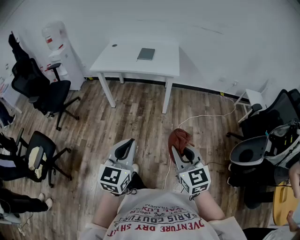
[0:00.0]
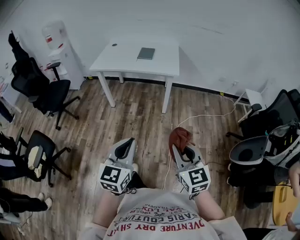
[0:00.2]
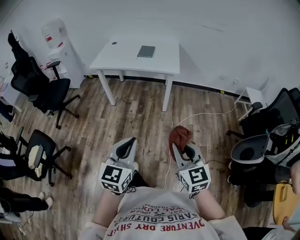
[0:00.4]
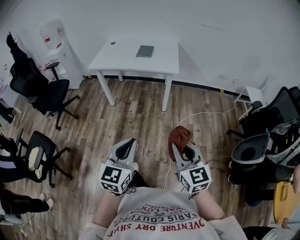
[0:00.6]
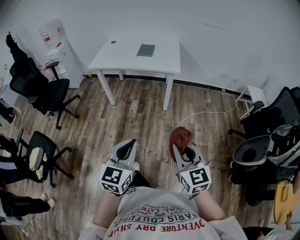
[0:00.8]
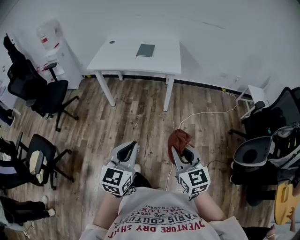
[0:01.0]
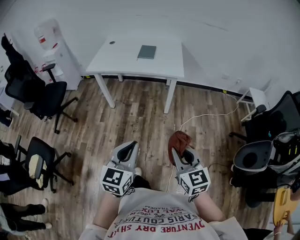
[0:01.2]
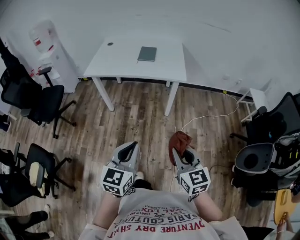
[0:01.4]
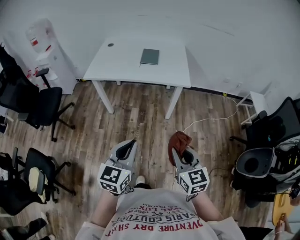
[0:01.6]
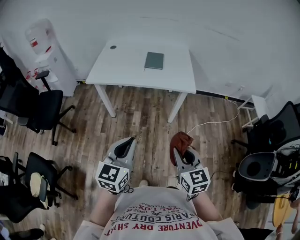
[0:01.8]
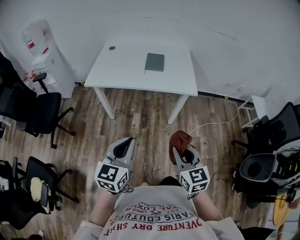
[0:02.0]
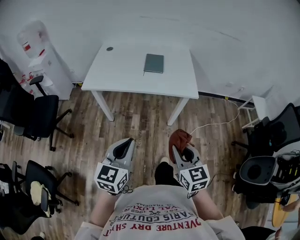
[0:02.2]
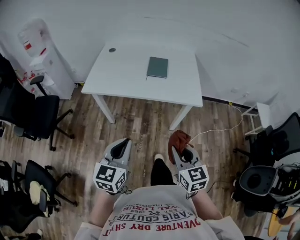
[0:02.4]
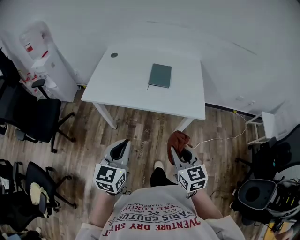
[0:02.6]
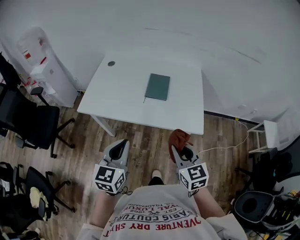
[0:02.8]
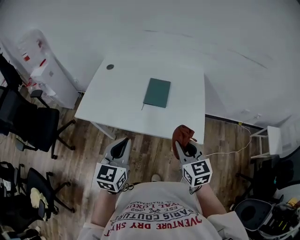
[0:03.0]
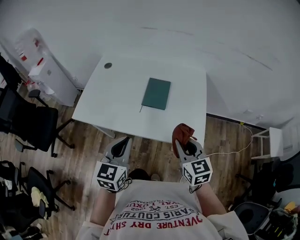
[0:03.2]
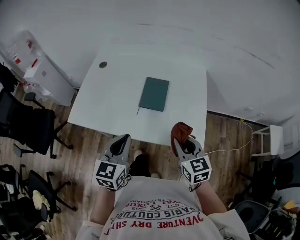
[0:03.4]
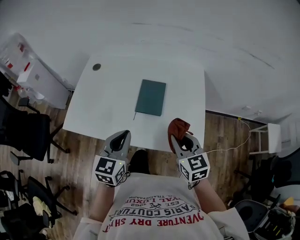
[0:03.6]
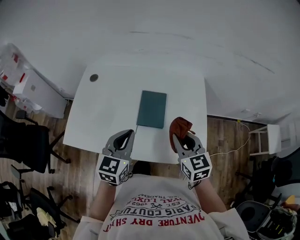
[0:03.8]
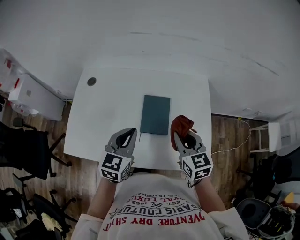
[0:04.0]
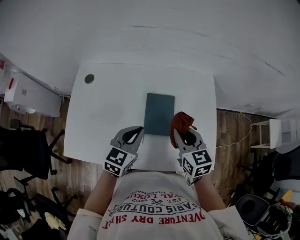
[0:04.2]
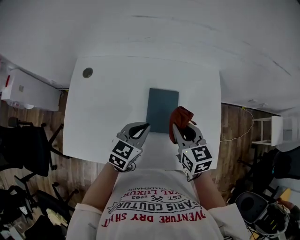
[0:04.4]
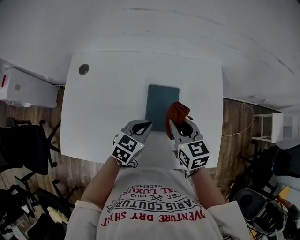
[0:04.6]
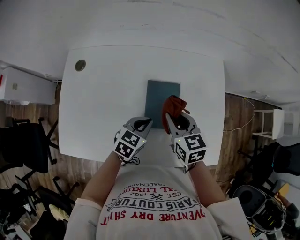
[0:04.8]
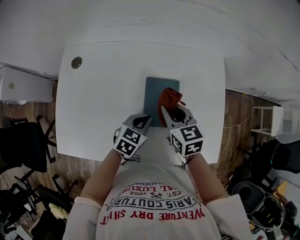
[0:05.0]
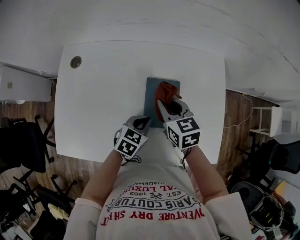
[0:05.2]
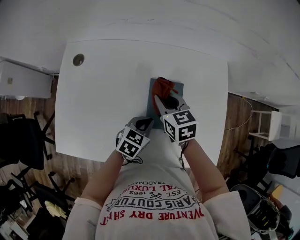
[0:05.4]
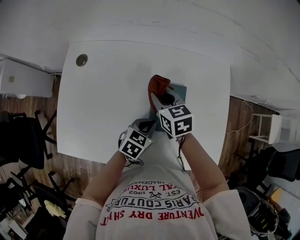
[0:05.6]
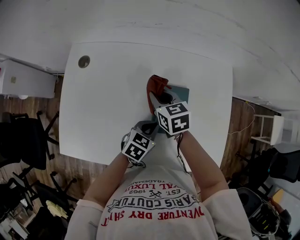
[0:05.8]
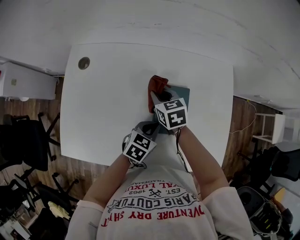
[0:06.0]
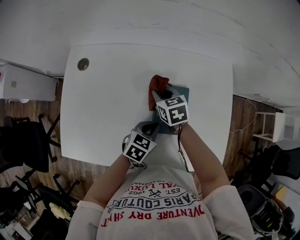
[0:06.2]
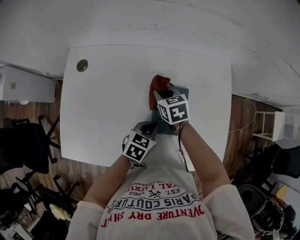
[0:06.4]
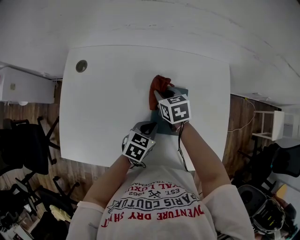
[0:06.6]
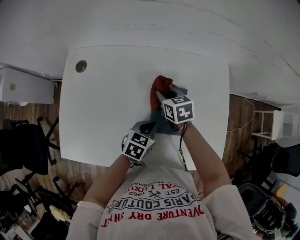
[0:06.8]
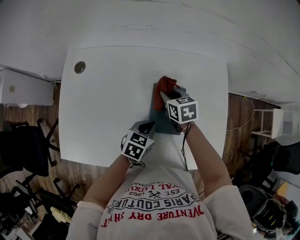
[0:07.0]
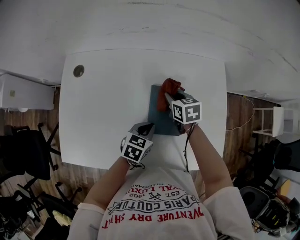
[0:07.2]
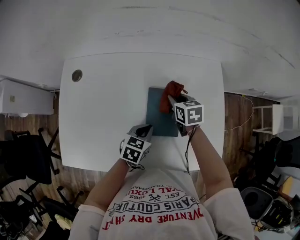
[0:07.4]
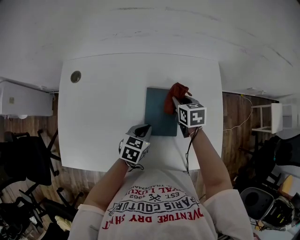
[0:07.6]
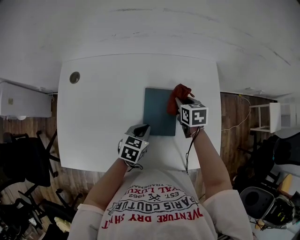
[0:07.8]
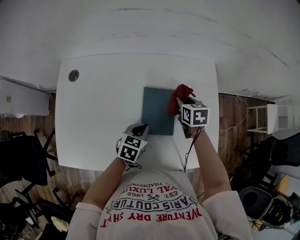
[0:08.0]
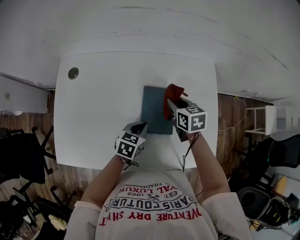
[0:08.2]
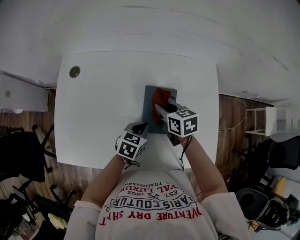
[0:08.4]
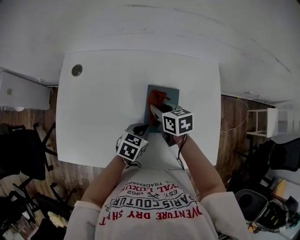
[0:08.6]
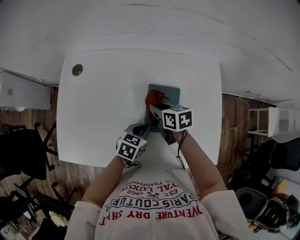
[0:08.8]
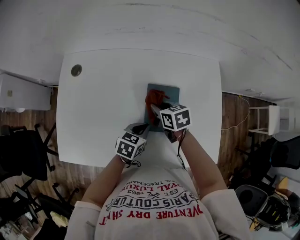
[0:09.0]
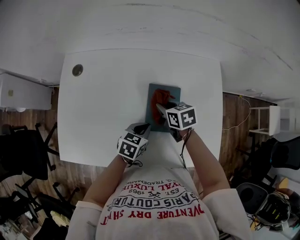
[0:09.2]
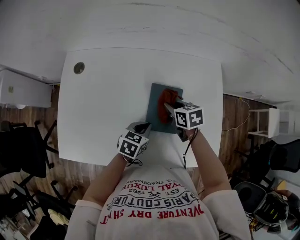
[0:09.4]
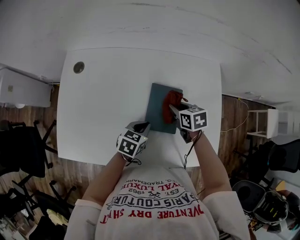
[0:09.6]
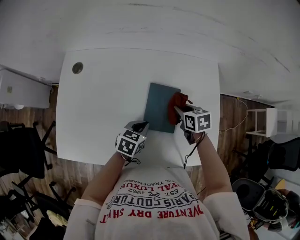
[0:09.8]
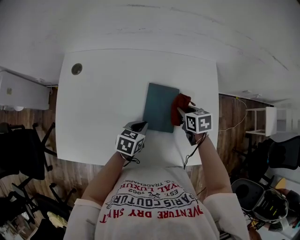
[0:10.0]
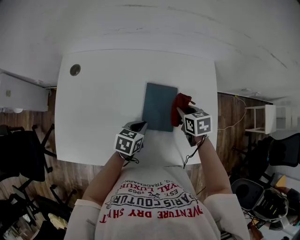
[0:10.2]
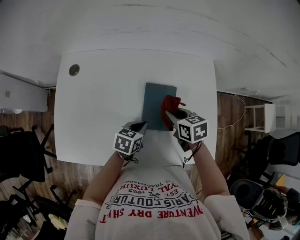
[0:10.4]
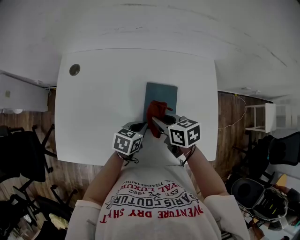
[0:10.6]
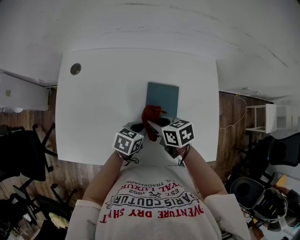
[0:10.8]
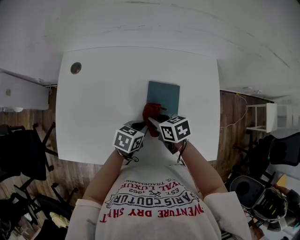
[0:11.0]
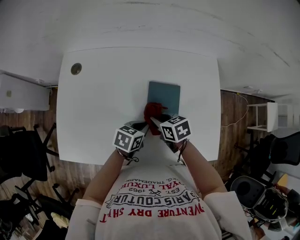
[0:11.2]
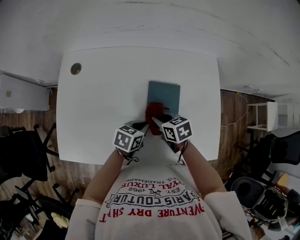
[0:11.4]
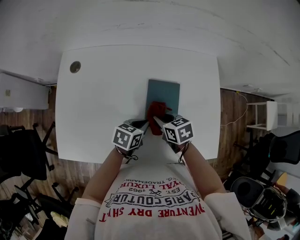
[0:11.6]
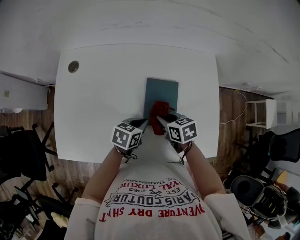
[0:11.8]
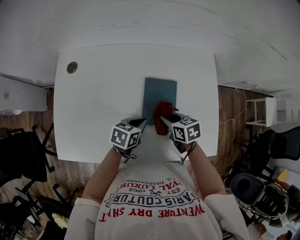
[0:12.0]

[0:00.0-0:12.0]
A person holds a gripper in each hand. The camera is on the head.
0:00.0 to 0:01.6: Both grippers travel together forward and to the left, roughly 25 cm.
0:01.6 to 0:03.0: The two grippers travel together, forward, roughly 40 cm.
0:03.0 to 0:04.4: The left gripper goes some 35 cm forward and downward, and rotates some 30 degrees; the right gripper travels forward by roughly 30 cm.
0:04.4 to 0:06.0: The right gripper travels to the left, downward and forward by some 20 cm, while the left gripper goes some 10 cm downward.
0:06.0 to 0:07.6: The right gripper heads to the right, covering approximately 15 cm.
0:07.6 to 0:09.0: The right gripper moves to the left and backward, some 10 cm.
0:09.0 to 0:10.4: The right gripper moves to the right, approximately 10 cm.
0:10.4 to 0:12.0: The right gripper goes about 5 cm downward, and travels to the left and back again, about 10 cm each way.

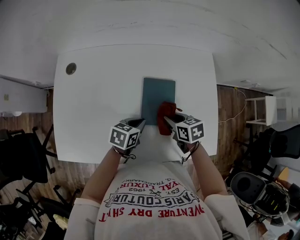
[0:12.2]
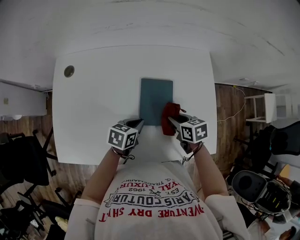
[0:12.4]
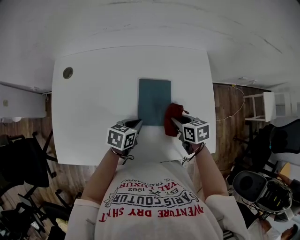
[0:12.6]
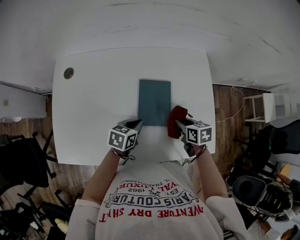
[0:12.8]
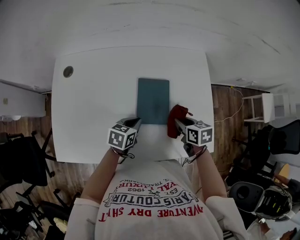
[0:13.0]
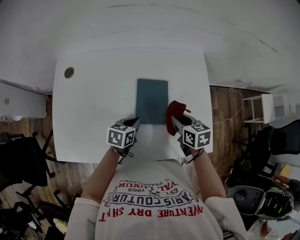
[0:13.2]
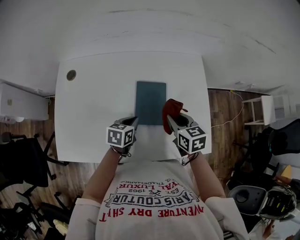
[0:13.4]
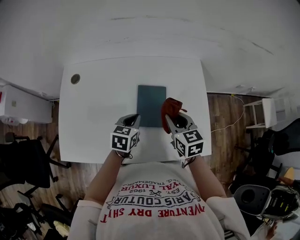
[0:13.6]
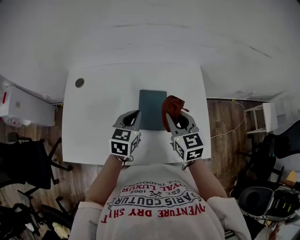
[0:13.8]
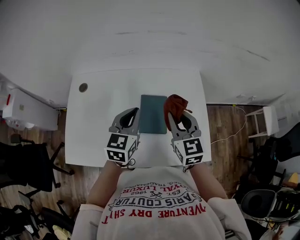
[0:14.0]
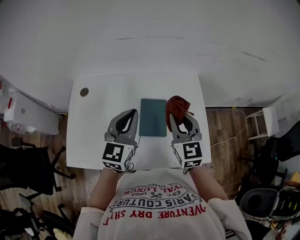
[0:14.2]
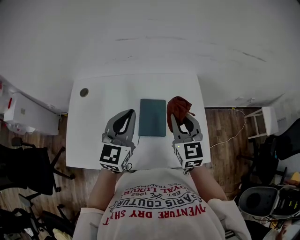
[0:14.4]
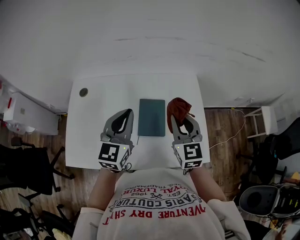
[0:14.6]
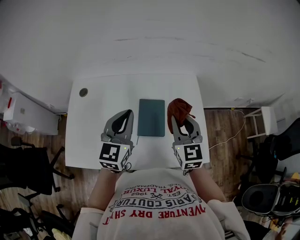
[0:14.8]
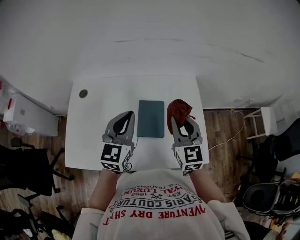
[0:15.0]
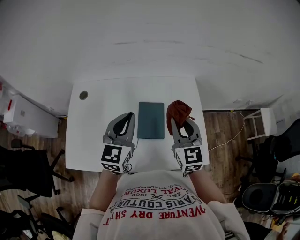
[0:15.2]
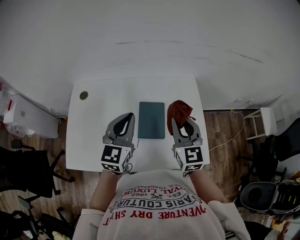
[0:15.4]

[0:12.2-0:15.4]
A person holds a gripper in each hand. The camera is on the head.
0:12.2 to 0:13.8: The grippers both shift upward by some 15 cm. The right gripper changes its angle by roughly 40 degrees. The left gripper rotates some 30 degrees.
0:13.8 to 0:15.4: The right gripper travels upward by approximately 10 cm. The left gripper travels upward by approximately 15 cm, and turns by roughly 20 degrees.

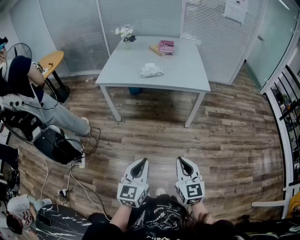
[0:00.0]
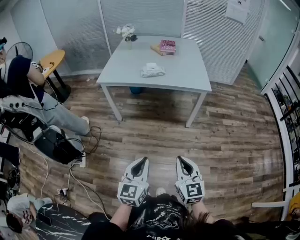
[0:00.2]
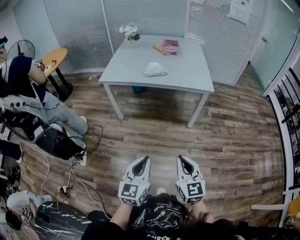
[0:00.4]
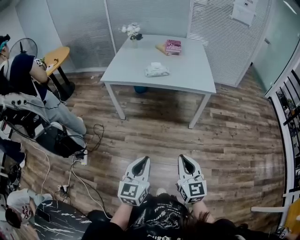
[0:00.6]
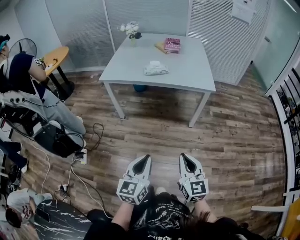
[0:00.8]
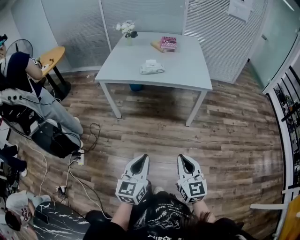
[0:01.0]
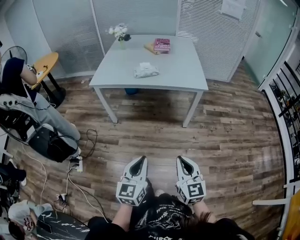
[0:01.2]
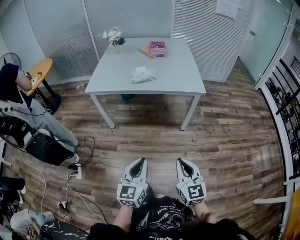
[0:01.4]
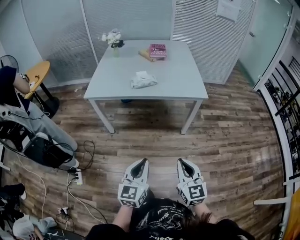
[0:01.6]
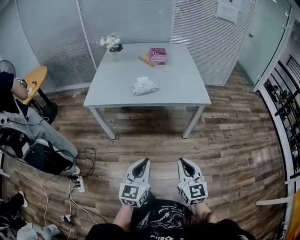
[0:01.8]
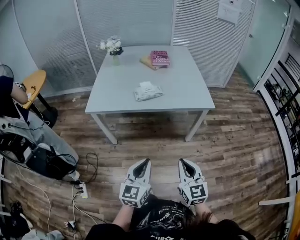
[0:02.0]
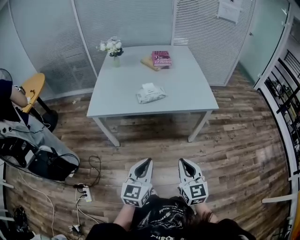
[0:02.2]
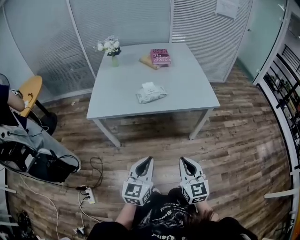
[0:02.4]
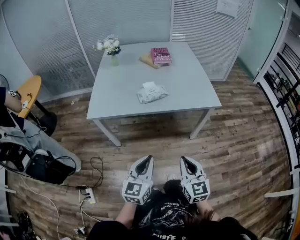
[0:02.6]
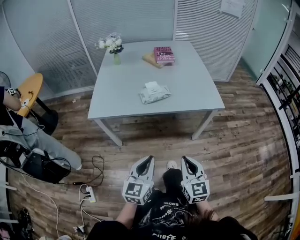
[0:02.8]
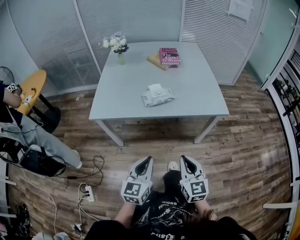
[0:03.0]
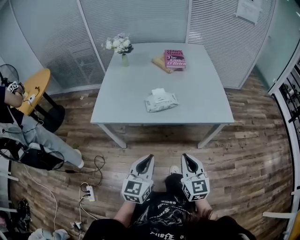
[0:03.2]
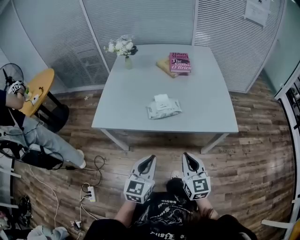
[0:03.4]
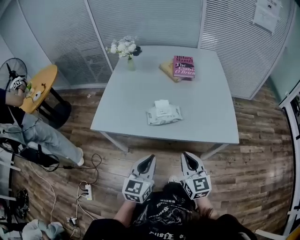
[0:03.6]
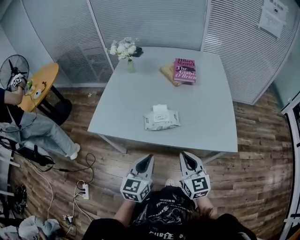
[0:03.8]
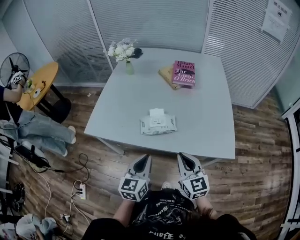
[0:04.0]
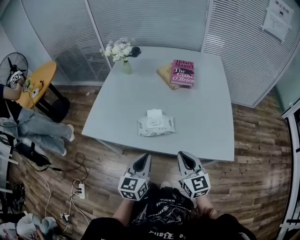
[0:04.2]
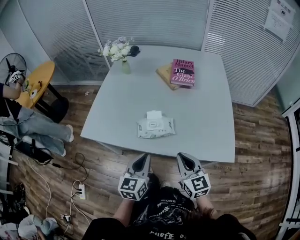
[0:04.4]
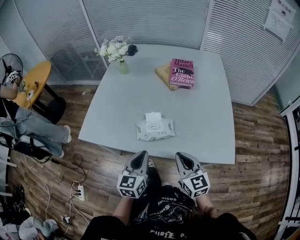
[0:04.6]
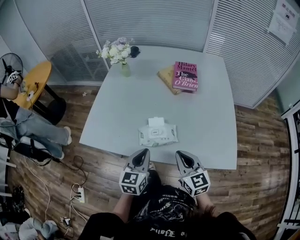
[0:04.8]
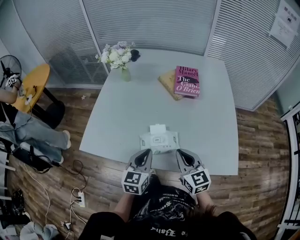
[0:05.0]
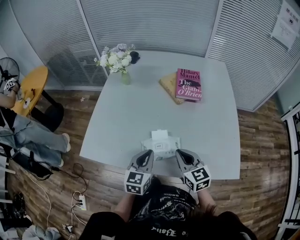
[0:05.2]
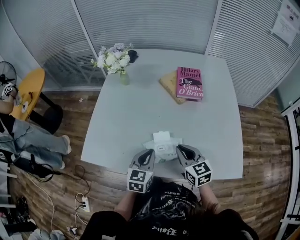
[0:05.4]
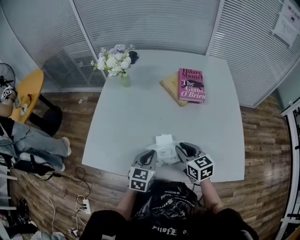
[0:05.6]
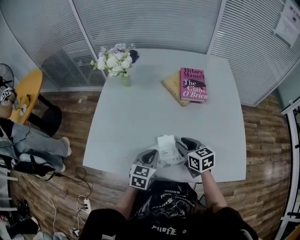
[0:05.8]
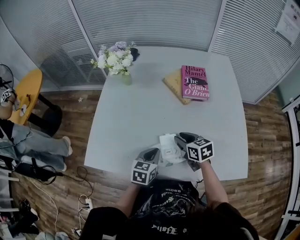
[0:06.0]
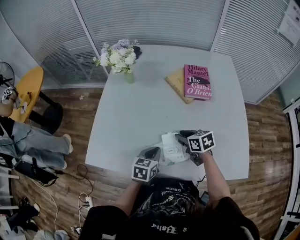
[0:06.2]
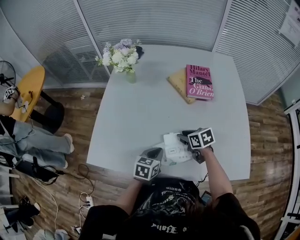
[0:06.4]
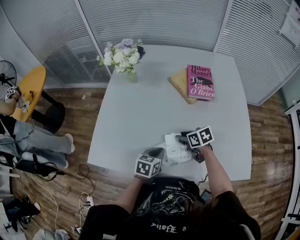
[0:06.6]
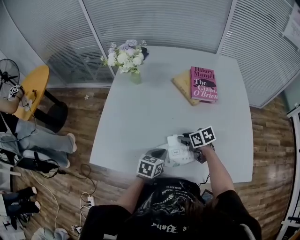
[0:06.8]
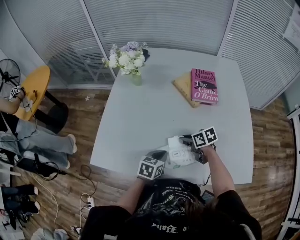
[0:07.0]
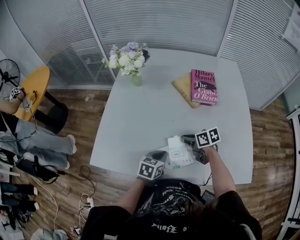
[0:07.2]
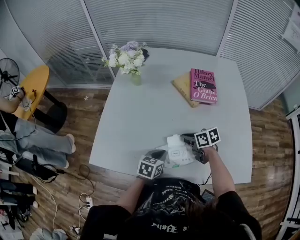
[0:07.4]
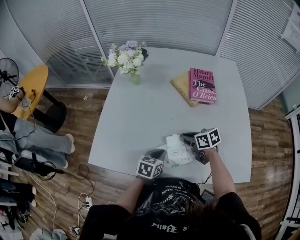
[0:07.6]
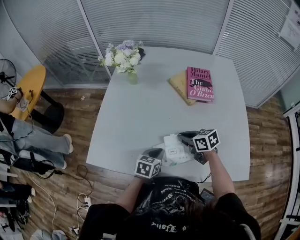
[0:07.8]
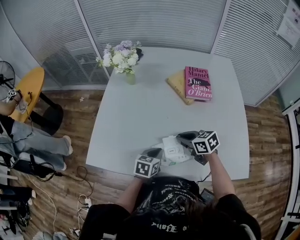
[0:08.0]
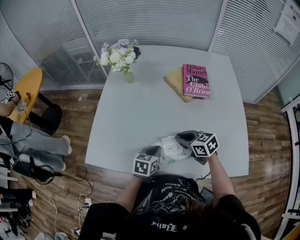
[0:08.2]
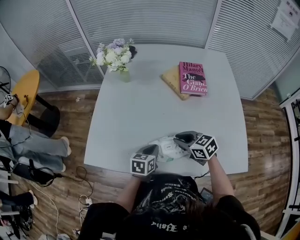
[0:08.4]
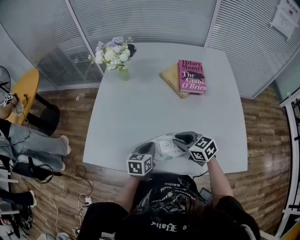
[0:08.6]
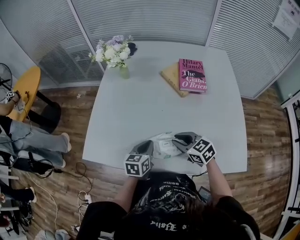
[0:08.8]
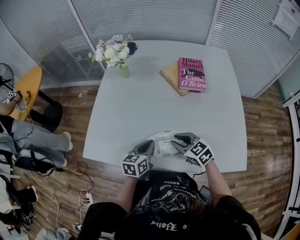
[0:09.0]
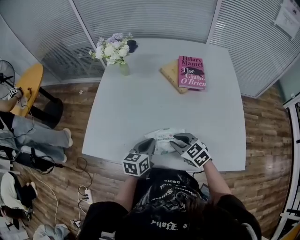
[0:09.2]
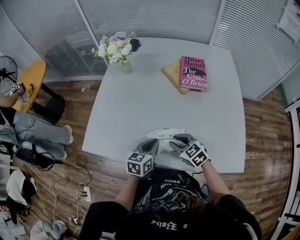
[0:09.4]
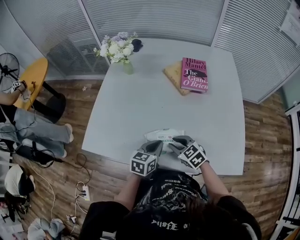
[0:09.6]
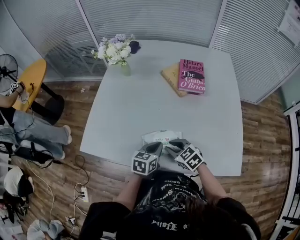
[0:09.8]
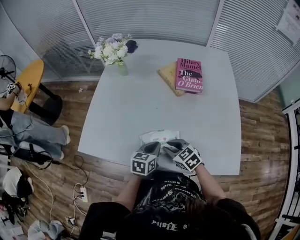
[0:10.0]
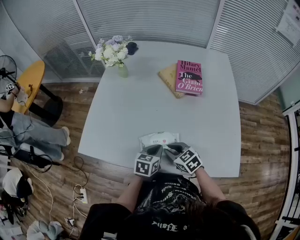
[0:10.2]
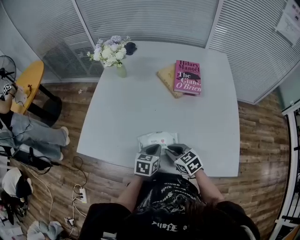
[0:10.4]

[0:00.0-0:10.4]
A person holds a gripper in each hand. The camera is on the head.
0:00.0 to 0:01.4: Both grippers move forward, some 10 cm.
0:01.4 to 0:03.0: The grippers both shift forward and to the left by about 25 cm.
0:03.0 to 0:04.4: The two grippers go approximately 25 cm forward. The right gripper turns by roughly 20 degrees.
0:04.4 to 0:06.0: The left gripper heads forward and downward, covering about 25 cm, and swivels some 20 degrees; the right gripper goes approximately 25 cm forward, changes its angle by about 30 degrees, and opens up.
0:06.0 to 0:07.4: The right gripper closes up.
0:07.4 to 0:09.0: The right gripper goes approximately 10 cm backward, and swivels about 40 degrees.
0:09.0 to 0:10.4: The left gripper moves to the right, some 10 cm. The right gripper ends up about 5 cm from where it was.
